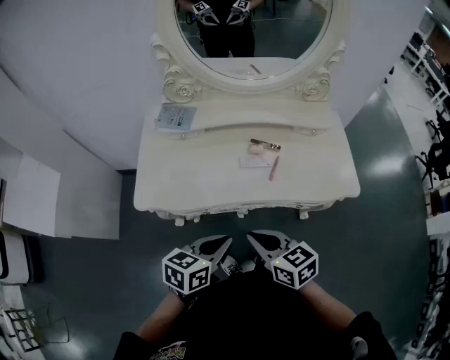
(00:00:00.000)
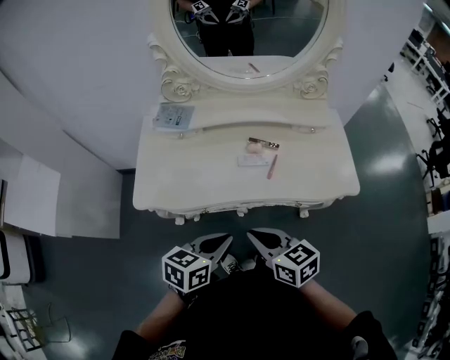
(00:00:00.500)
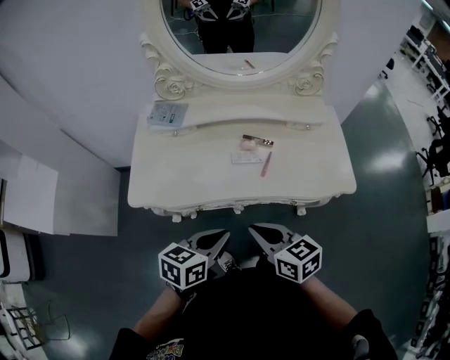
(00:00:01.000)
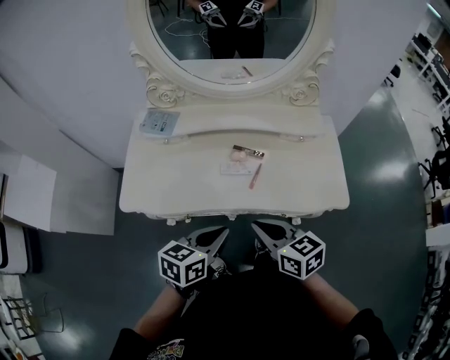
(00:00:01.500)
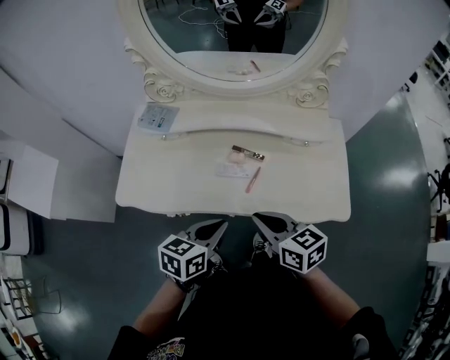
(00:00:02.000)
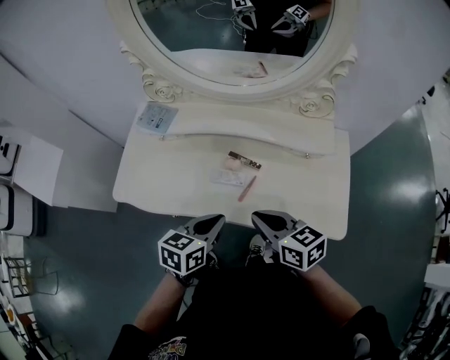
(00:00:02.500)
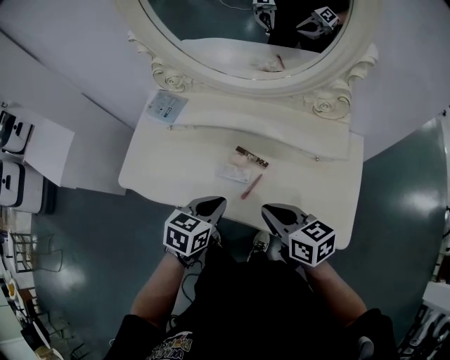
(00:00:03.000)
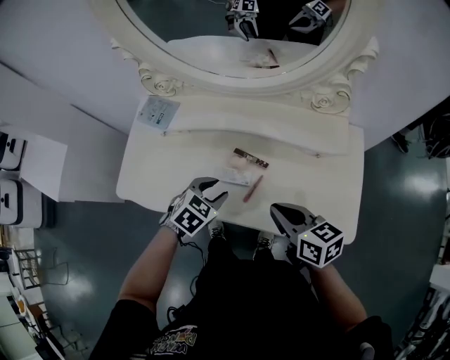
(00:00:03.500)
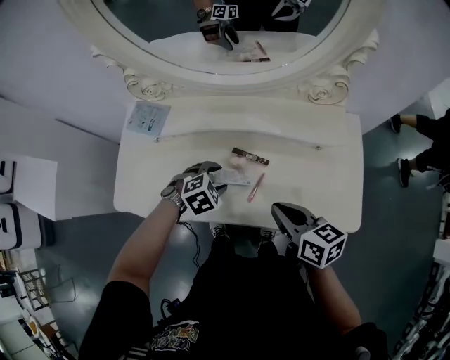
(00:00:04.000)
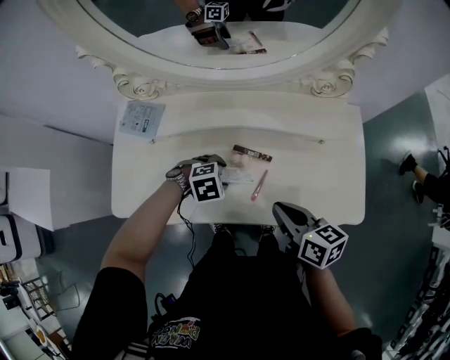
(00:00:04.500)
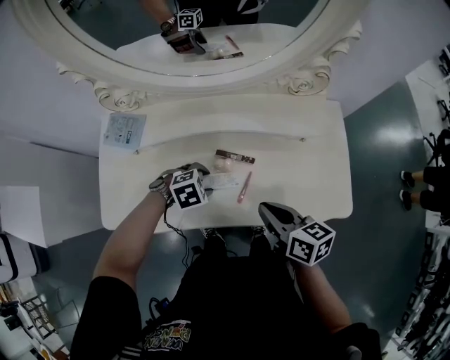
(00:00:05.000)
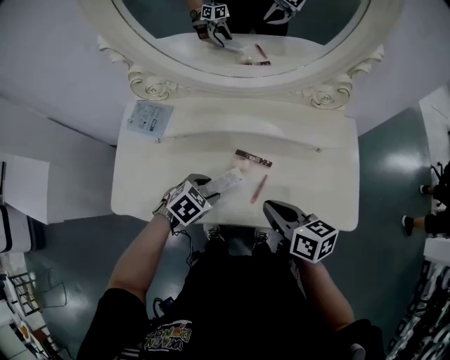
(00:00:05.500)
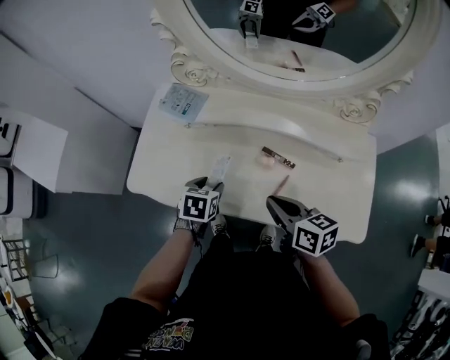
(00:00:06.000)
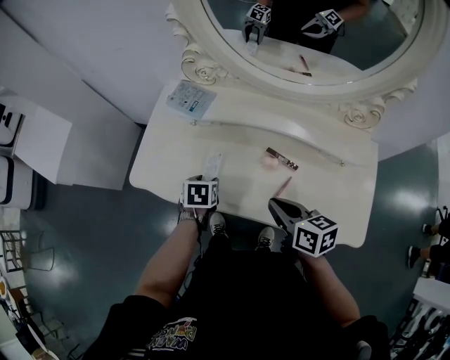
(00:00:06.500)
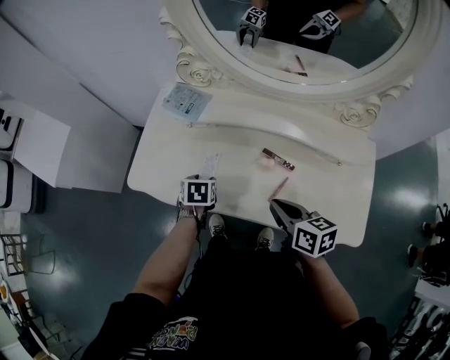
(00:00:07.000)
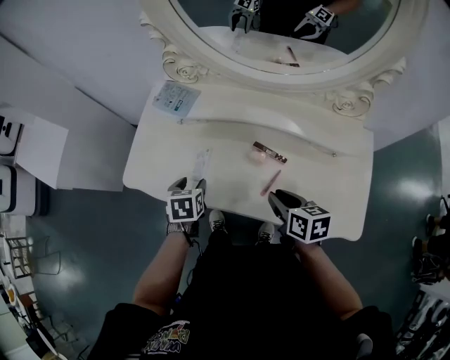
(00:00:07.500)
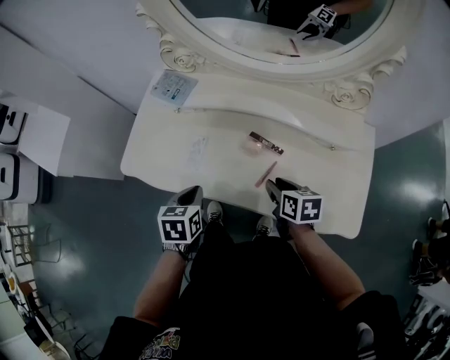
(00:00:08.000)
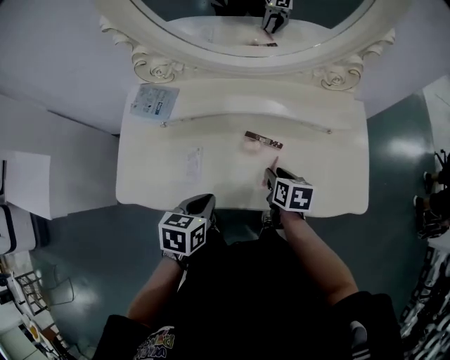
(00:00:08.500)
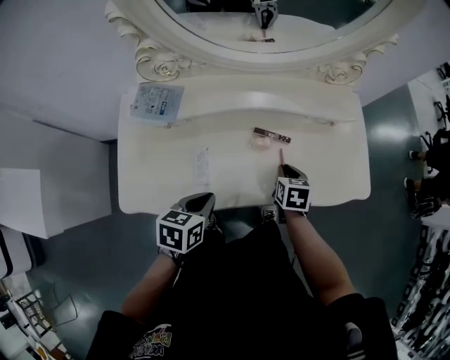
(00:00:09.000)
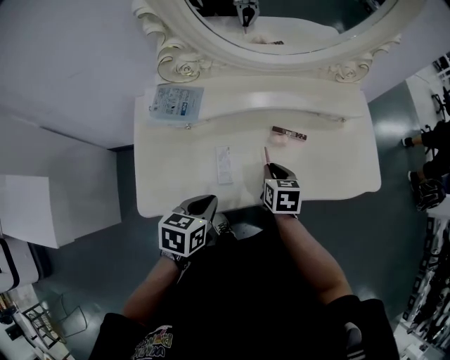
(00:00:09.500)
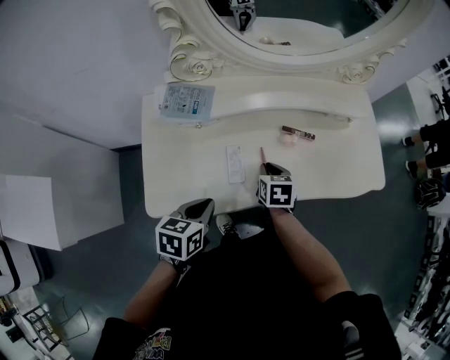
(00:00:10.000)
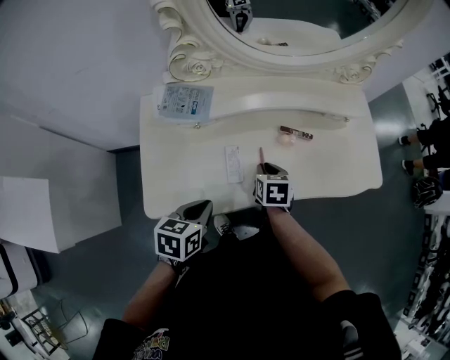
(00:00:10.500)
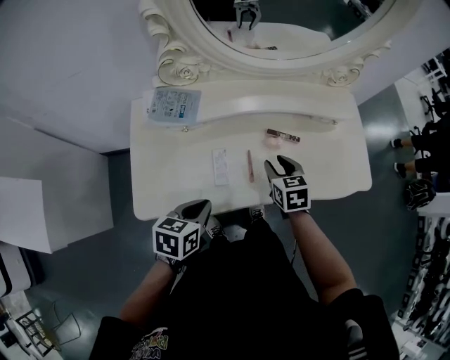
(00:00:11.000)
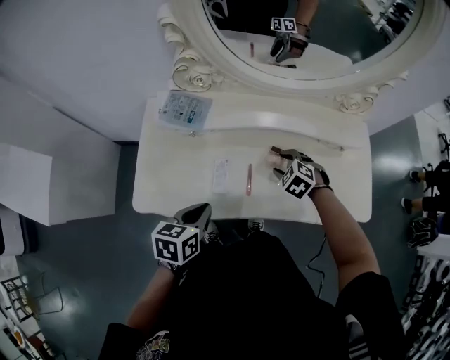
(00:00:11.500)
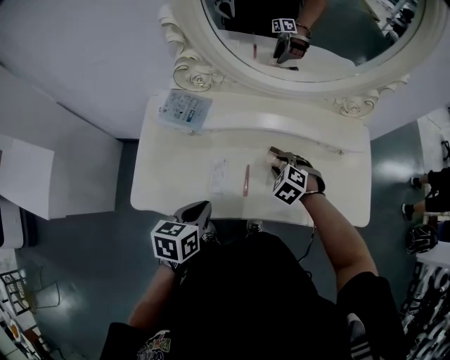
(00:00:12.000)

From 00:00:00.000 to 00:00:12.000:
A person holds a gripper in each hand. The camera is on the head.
From 00:00:00.000 to 00:00:02.000: Both grippers travel together to the right and forward, approximately 15 cm.
From 00:00:02.000 to 00:00:04.000: The left gripper travels forward and downward by about 25 cm, rotates around the line of its fingers by about 50 degrees, clockwise from behind, and opens its fingers. The right gripper heads forward and to the right, covering roughly 10 cm.
From 00:00:04.000 to 00:00:06.000: The left gripper changes place by roughly 15 cm, and twists about 60 degrees counterclockwise, seen from behind, while the right gripper shifts by about 10 cm.
From 00:00:06.000 to 00:00:08.000: The left gripper is displaced backward and upward by some 10 cm, and closes. Meanwhile the right gripper goes roughly 10 cm downward and to the right, and opens up.
From 00:00:08.000 to 00:00:10.000: The right gripper shifts by roughly 20 cm, and turns by some 30 degrees. The left gripper ends up roughly 15 cm from where it was, and turns by approximately 40 degrees.
From 00:00:10.000 to 00:00:12.000: The right gripper travels forward and to the right by some 10 cm, rolls counterclockwise, seen from behind, by roughly 70 degrees, and opens its fingers. Meanwhile the left gripper shifts some 5 cm to the right.

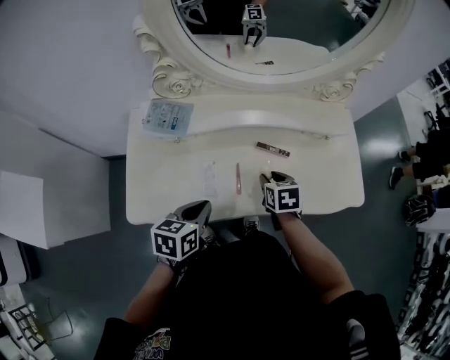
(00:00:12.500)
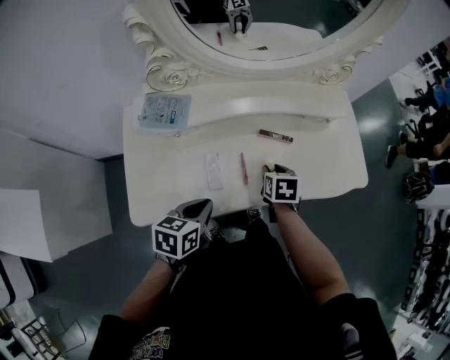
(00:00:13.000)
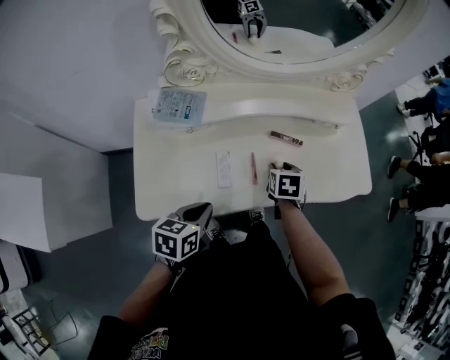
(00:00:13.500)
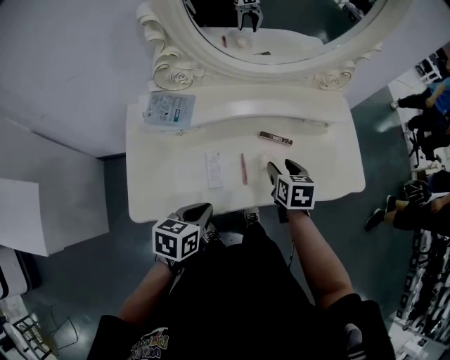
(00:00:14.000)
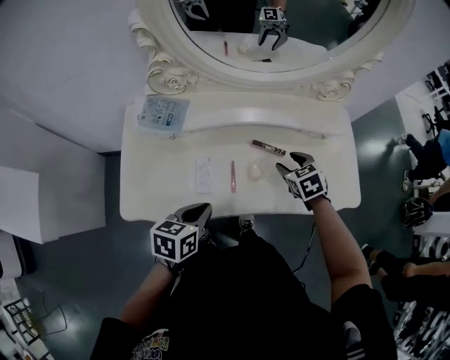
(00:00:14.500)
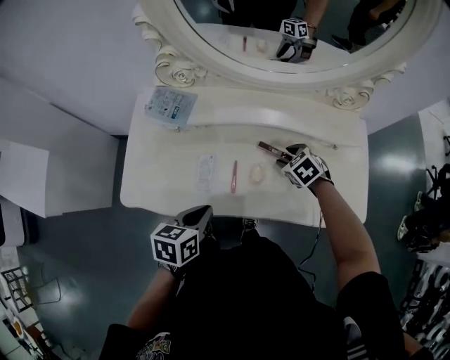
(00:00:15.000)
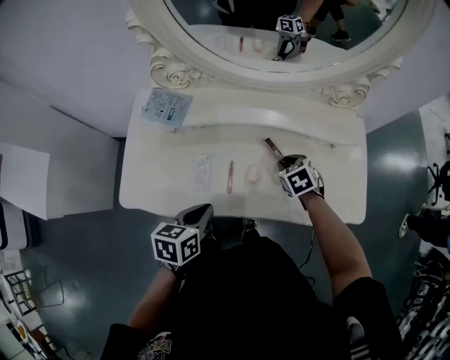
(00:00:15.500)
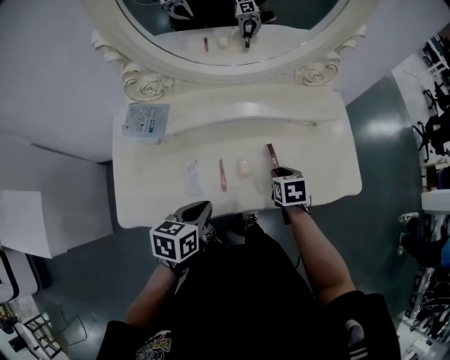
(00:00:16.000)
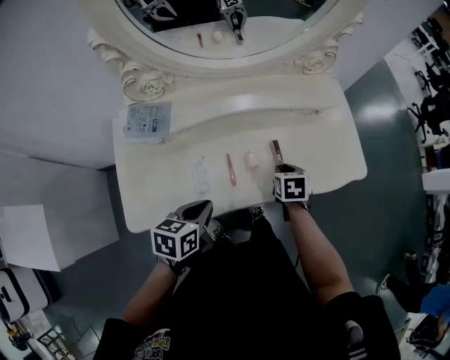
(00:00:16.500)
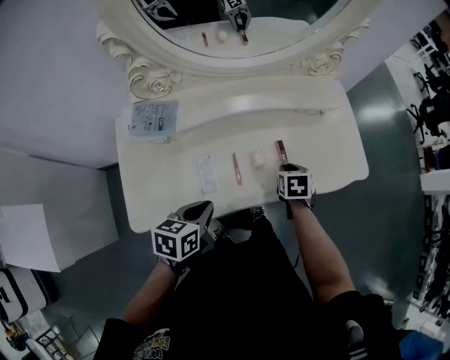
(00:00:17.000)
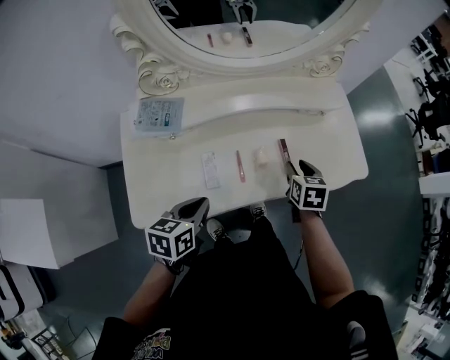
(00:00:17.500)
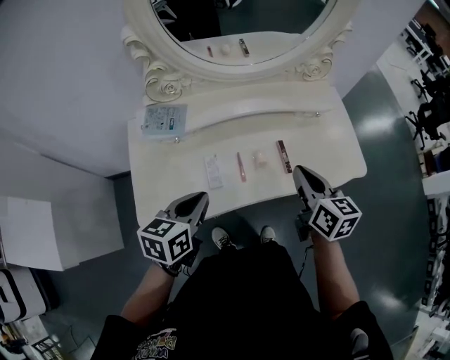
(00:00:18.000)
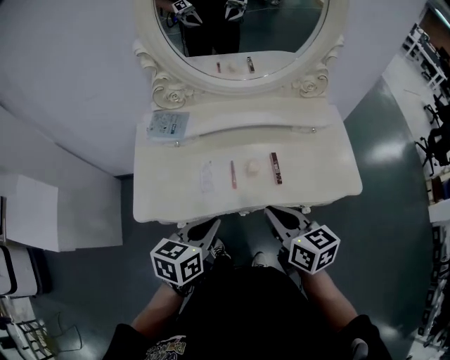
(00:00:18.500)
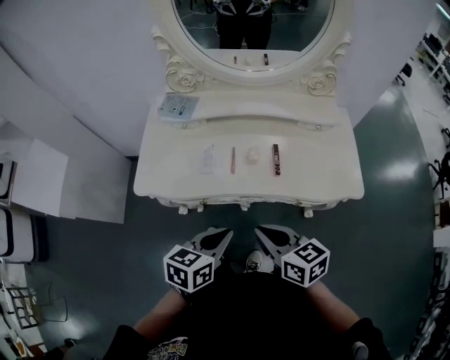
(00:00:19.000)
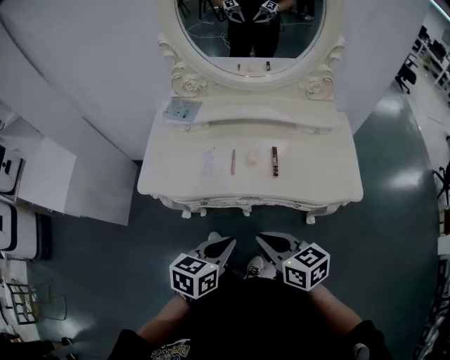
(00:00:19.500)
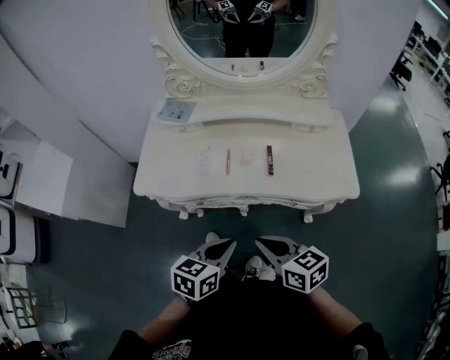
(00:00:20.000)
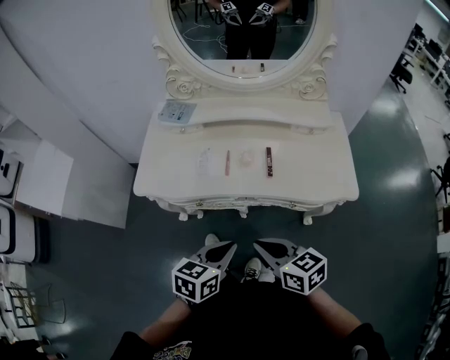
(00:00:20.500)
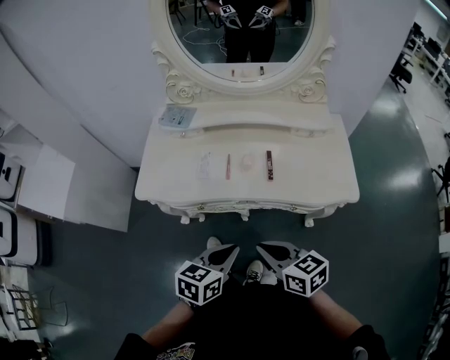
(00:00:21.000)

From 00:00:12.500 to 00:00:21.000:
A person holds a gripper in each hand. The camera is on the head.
From 00:00:12.500 to 00:00:14.500: The right gripper travels forward by about 5 cm, and turns by roughly 30 degrees.
From 00:00:14.500 to 00:00:16.500: The right gripper shifts by about 10 cm, changes its angle by about 40 degrees, and closes up.
From 00:00:16.500 to 00:00:19.000: The right gripper ends up roughly 30 cm from where it was, and tilts its fingers some 40 degrees upward, while the left gripper ends up approximately 20 cm from where it was.
From 00:00:19.000 to 00:00:21.000: The two grippers go approximately 5 cm backward.

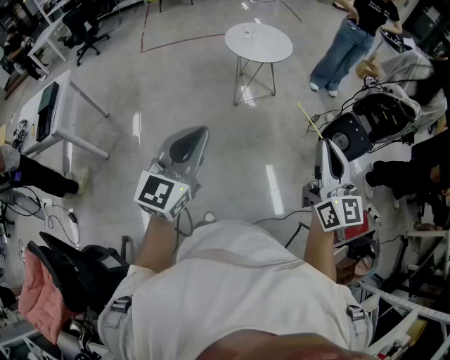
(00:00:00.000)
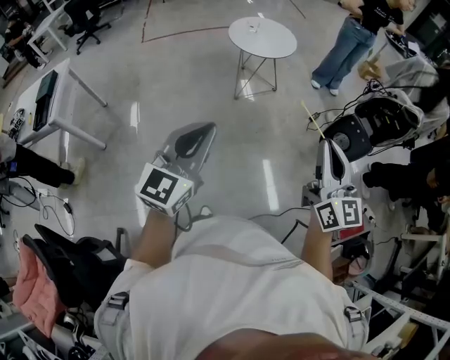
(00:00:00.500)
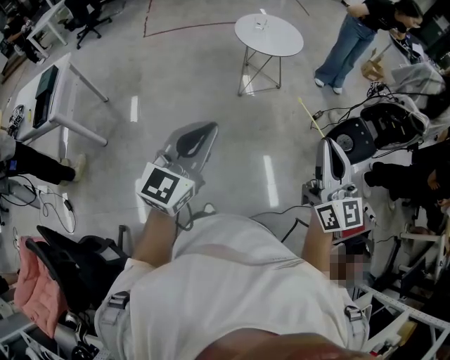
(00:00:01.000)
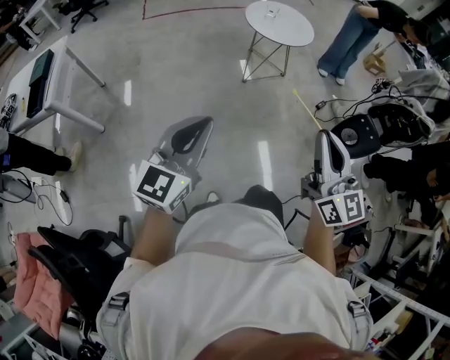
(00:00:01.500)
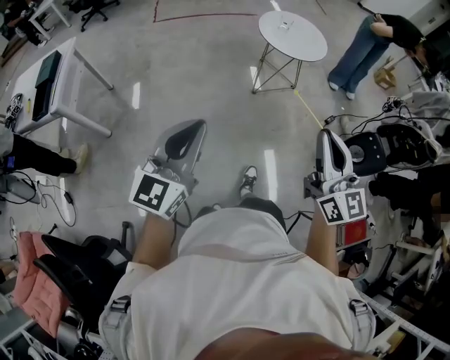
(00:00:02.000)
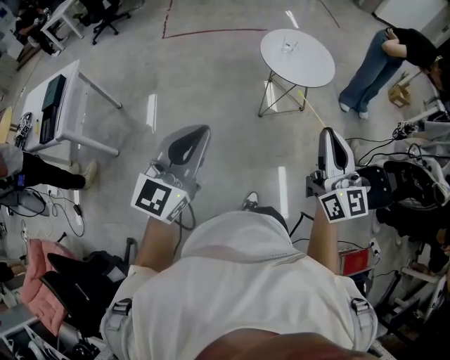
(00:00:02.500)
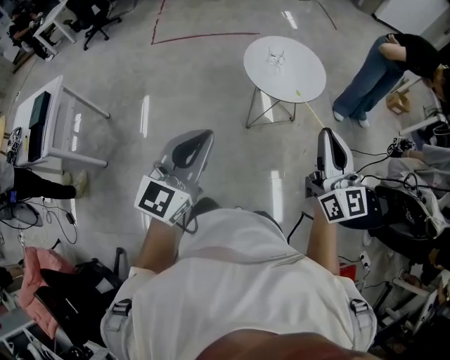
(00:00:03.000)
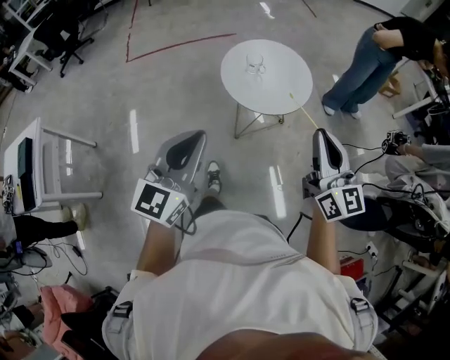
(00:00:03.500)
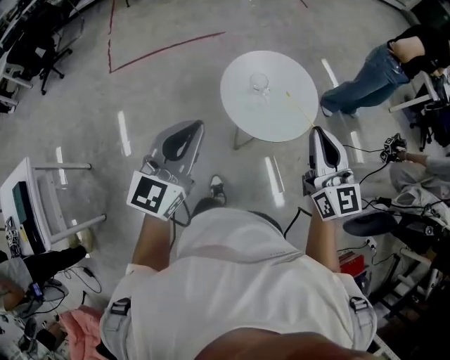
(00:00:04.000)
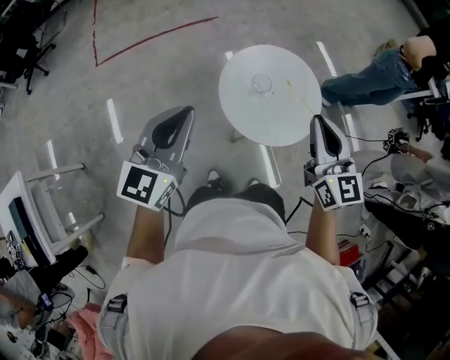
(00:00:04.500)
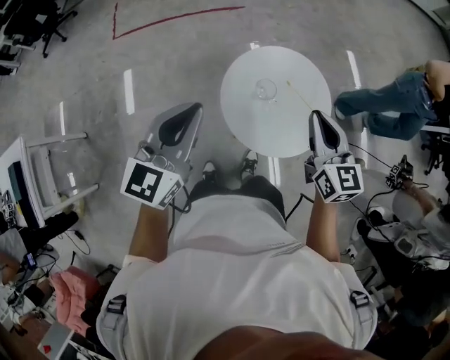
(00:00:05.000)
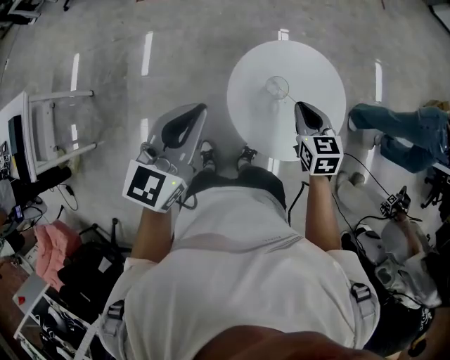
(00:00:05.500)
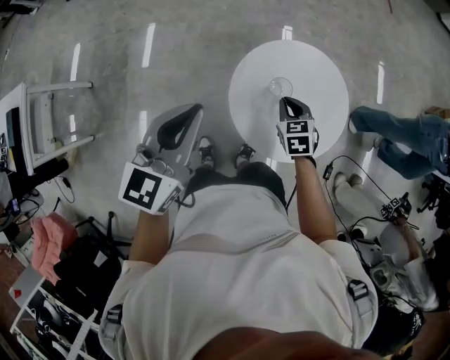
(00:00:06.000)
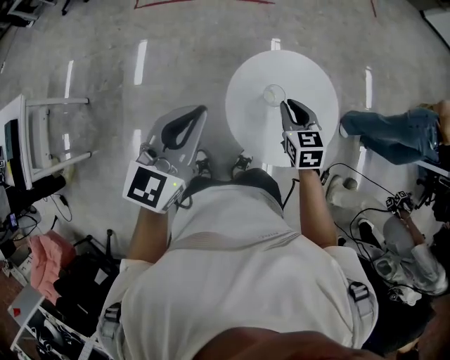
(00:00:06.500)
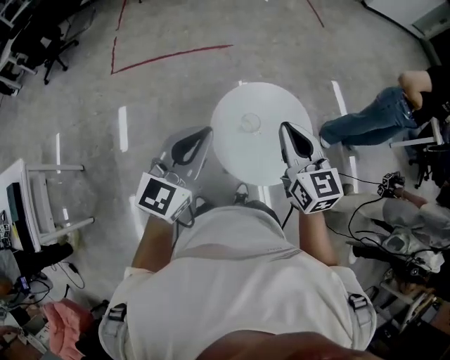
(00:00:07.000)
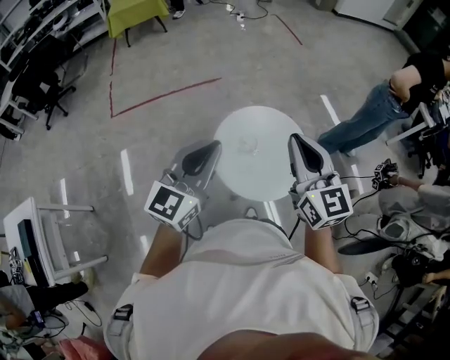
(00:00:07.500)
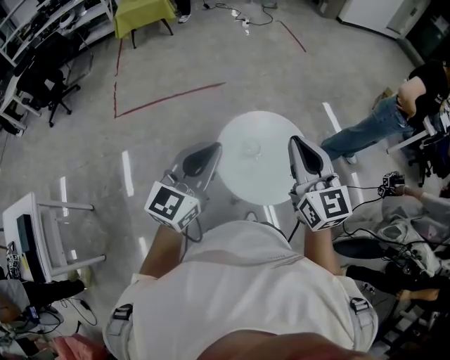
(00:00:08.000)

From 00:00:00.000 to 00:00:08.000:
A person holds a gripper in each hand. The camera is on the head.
From 00:00:00.000 to 00:00:02.000: The two grippers go about 25 cm to the left and forward.
From 00:00:02.000 to 00:00:04.000: The two grippers travel together, forward, roughly 70 cm.
From 00:00:04.000 to 00:00:06.000: The right gripper moves downward and forward, approximately 40 cm, and tilts its fingers approximately 50 degrees downward, while the left gripper shifts about 20 cm forward and downward, and swivels roughly 30 degrees.
From 00:00:06.000 to 00:00:08.000: The right gripper moves upward, about 40 cm, and angles its fingers upward, by roughly 50 degrees. The left gripper moves upward and to the right, roughly 15 cm, and changes its angle by roughly 30 degrees.
